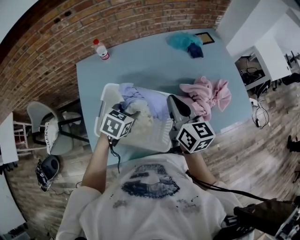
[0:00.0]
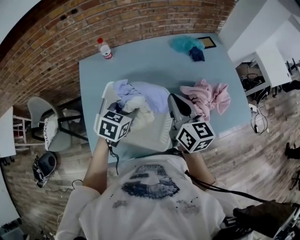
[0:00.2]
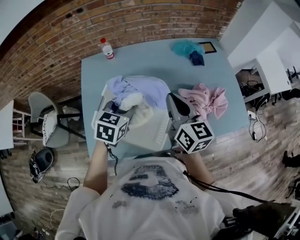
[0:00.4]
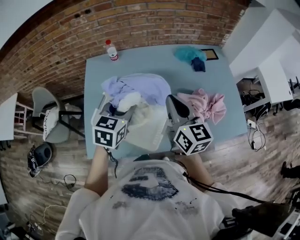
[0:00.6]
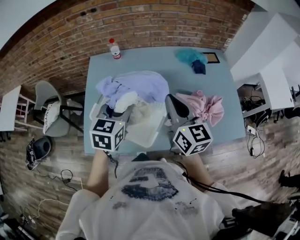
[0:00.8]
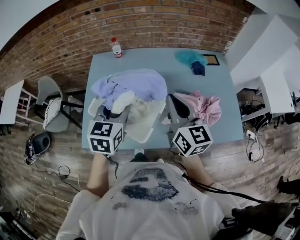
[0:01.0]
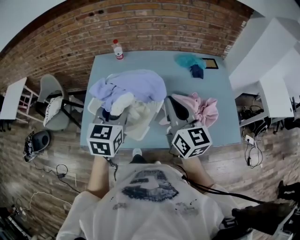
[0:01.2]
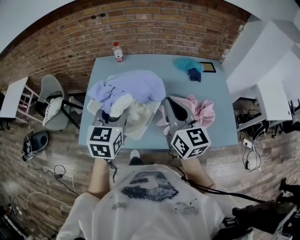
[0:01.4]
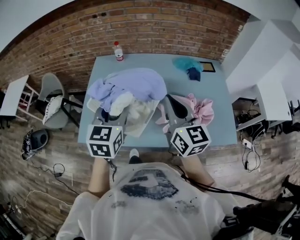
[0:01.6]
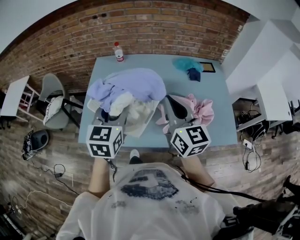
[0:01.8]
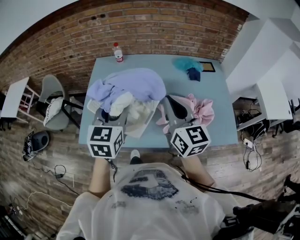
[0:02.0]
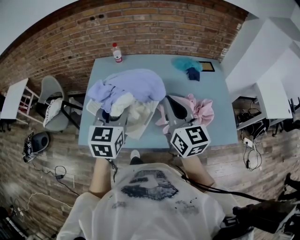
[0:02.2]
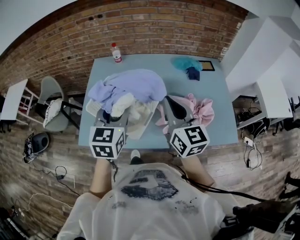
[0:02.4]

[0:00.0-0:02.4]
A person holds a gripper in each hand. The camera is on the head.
0:00.0 to 0:01.2: The left gripper travels upward by roughly 20 cm, and turns by approximately 50 degrees. Meanwhile the right gripper shifts by about 15 cm, and changes its angle by roughly 20 degrees.
0:01.2 to 0:02.4: The grippers move only a little.

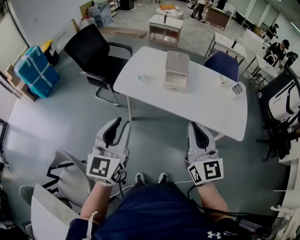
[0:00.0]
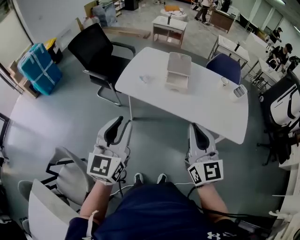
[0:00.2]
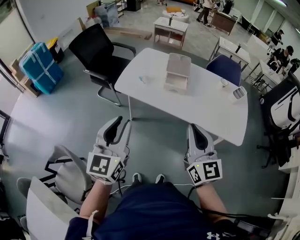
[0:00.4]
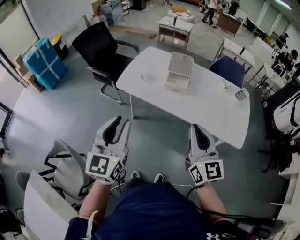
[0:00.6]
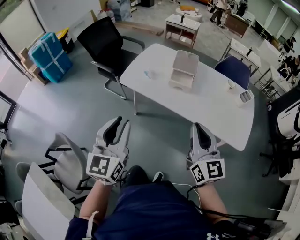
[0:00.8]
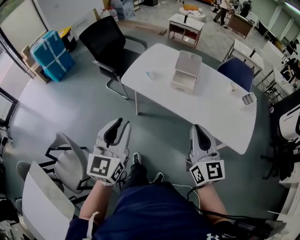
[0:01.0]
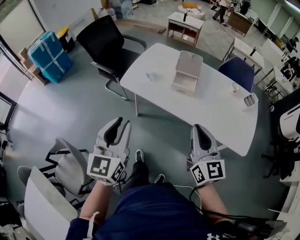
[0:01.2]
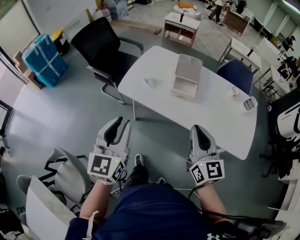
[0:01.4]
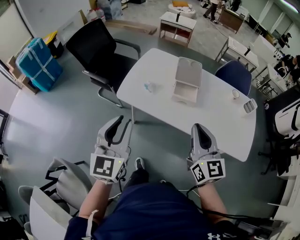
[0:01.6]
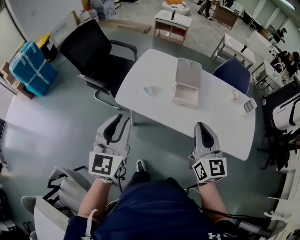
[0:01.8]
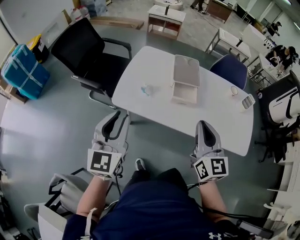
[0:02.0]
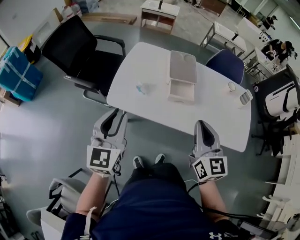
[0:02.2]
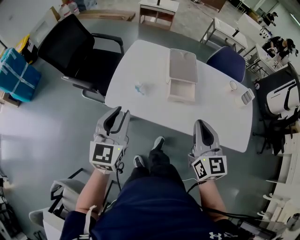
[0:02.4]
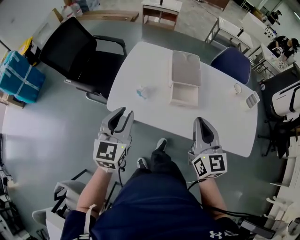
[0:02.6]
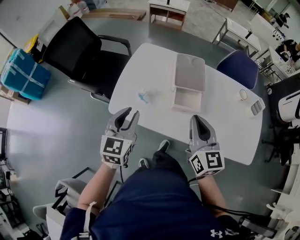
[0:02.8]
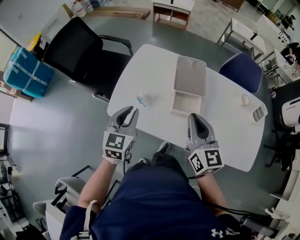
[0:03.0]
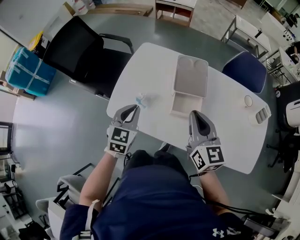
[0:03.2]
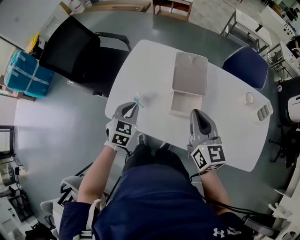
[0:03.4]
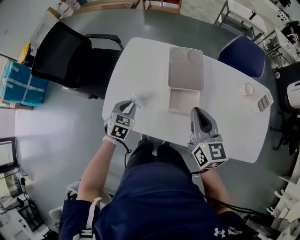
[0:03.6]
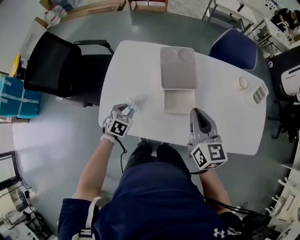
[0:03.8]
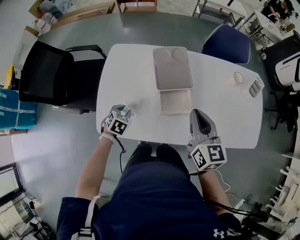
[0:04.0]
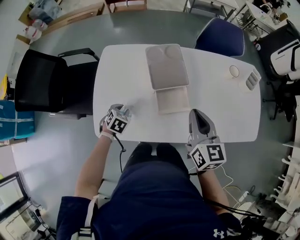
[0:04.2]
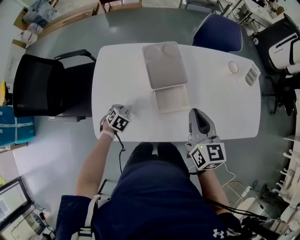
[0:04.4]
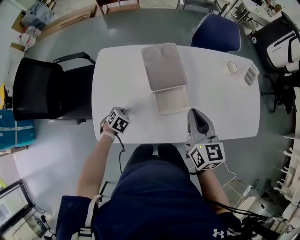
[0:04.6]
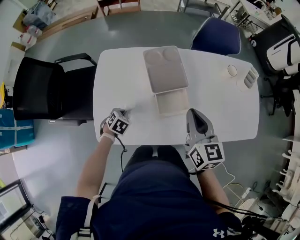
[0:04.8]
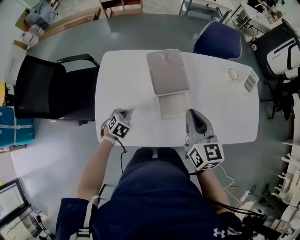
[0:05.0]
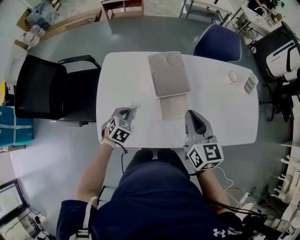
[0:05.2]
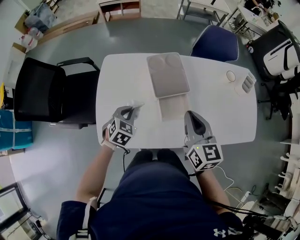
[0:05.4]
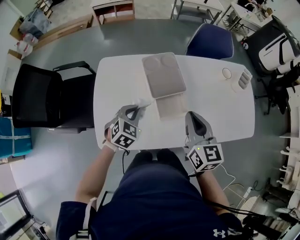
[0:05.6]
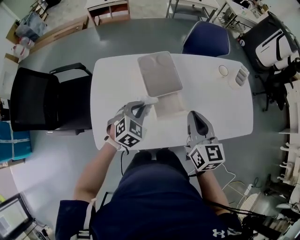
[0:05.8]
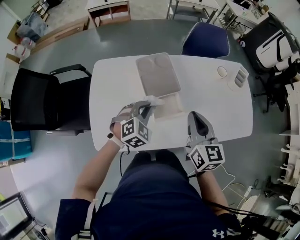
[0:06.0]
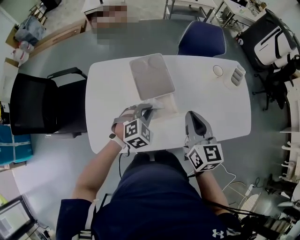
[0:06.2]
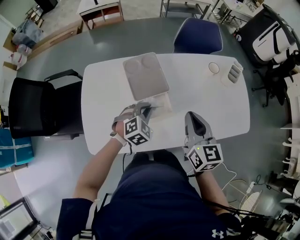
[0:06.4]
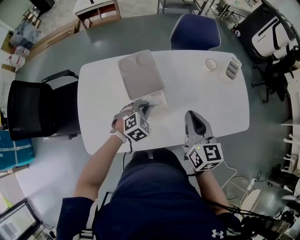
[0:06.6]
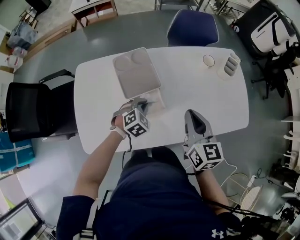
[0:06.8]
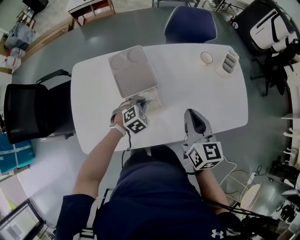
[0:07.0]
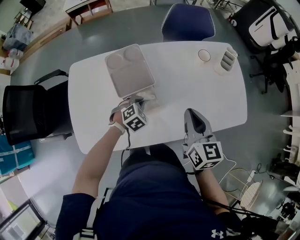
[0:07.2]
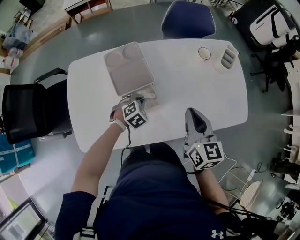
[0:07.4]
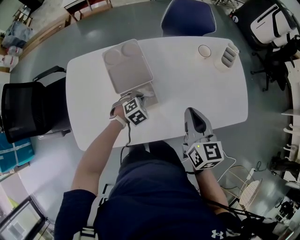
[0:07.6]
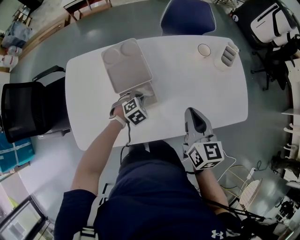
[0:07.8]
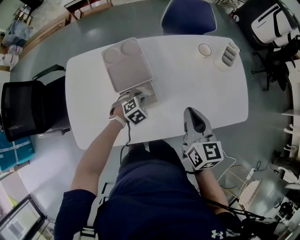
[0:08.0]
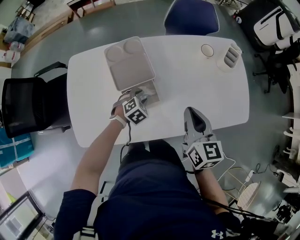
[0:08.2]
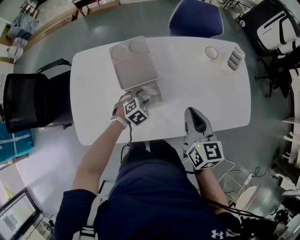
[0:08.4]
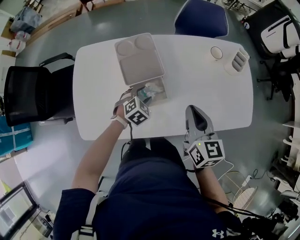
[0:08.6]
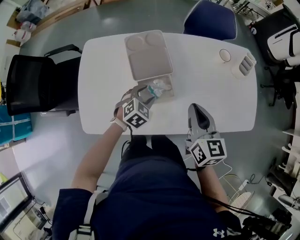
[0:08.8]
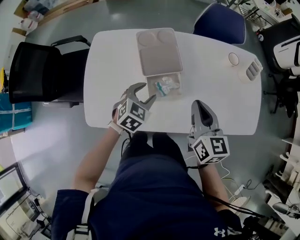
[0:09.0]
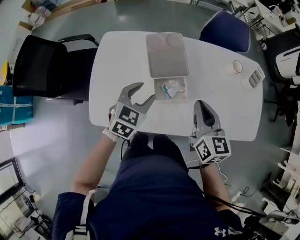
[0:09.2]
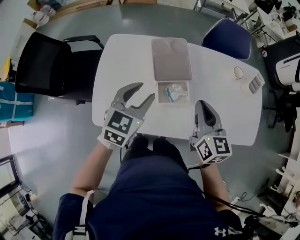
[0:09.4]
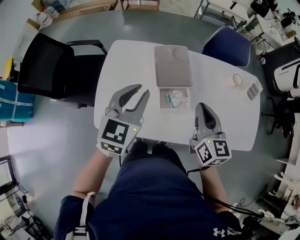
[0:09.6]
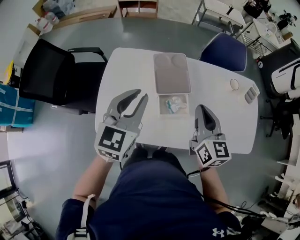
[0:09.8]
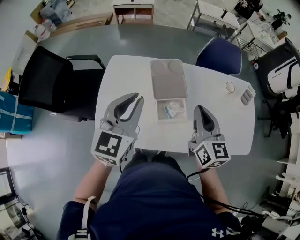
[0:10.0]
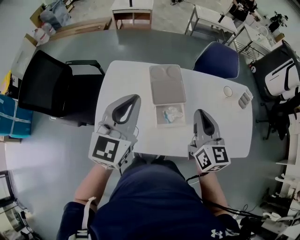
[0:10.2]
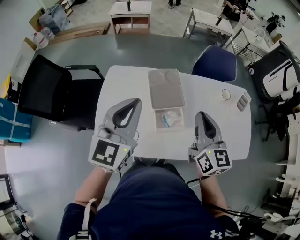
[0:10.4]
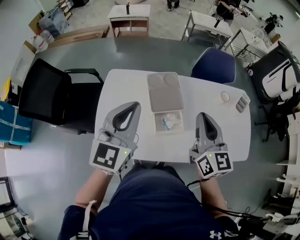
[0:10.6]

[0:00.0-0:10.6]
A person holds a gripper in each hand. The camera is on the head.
0:00.0 to 0:01.6: The grippers both shift forward by some 15 cm.
0:01.6 to 0:03.0: The left gripper is displaced forward and downward by approximately 30 cm. The right gripper moves forward, roughly 20 cm.
0:03.0 to 0:04.6: The right gripper shifts by roughly 10 cm, and swivels roughly 30 degrees; the left gripper is displaced downward by some 30 cm, and tilts its fingers approximately 50 degrees downward.
0:04.6 to 0:06.0: The left gripper shifts approximately 25 cm upward and to the right, and tips its fingers upward by about 30 degrees.
0:06.0 to 0:07.6: The left gripper heads downward and to the right, covering approximately 20 cm, and rotates some 20 degrees; the right gripper heads to the right, covering roughly 10 cm.
0:07.6 to 0:09.0: The right gripper is displaced to the left by roughly 10 cm; the left gripper is displaced upward and to the left by roughly 15 cm, rotates approximately 30 degrees, and opens.
0:09.0 to 0:10.6: The left gripper heads upward, covering some 30 cm, points its fingers roughly 40 degrees further upward, and closes, while the right gripper heads upward, covering some 15 cm.

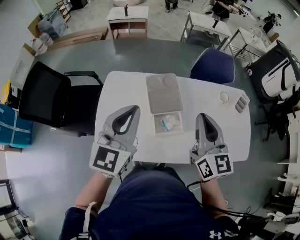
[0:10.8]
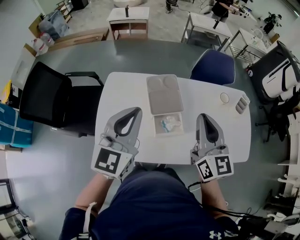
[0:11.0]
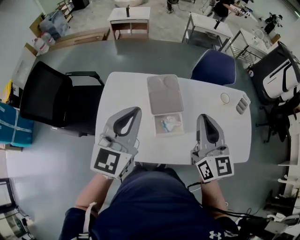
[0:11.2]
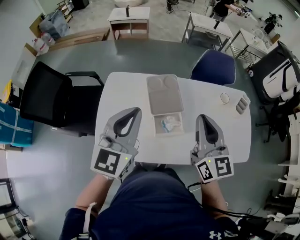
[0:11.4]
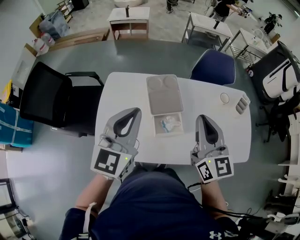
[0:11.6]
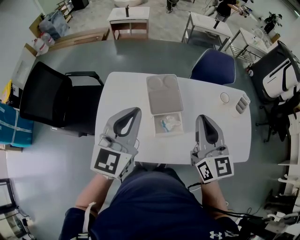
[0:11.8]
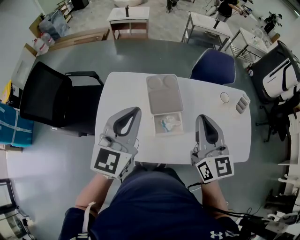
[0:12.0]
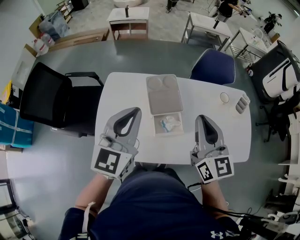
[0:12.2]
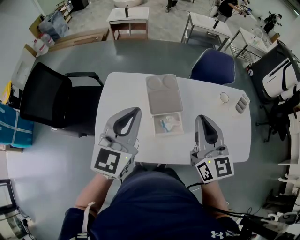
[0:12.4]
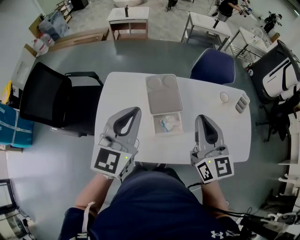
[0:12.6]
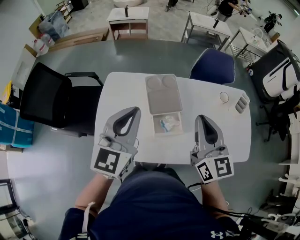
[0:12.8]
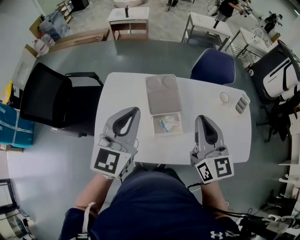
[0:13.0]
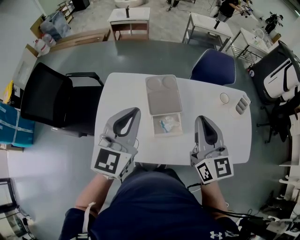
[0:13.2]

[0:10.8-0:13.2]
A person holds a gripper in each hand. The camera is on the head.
0:10.8 to 0:12.0: Both grippers stay put.
0:12.0 to 0:13.2: The two grippers keep their place.

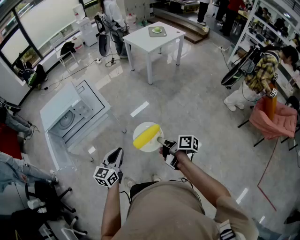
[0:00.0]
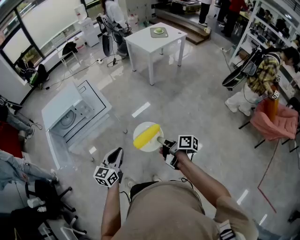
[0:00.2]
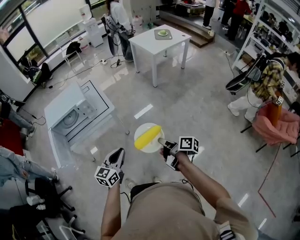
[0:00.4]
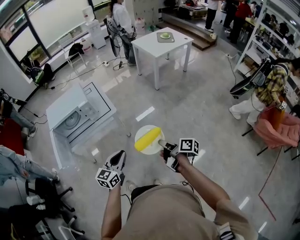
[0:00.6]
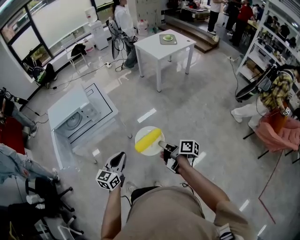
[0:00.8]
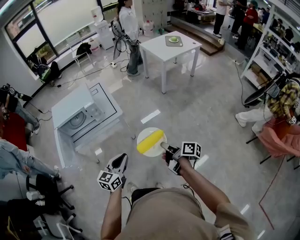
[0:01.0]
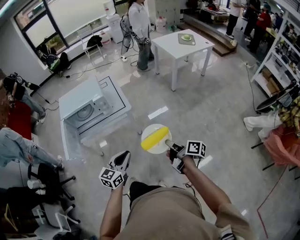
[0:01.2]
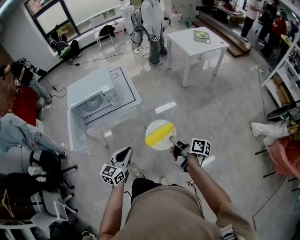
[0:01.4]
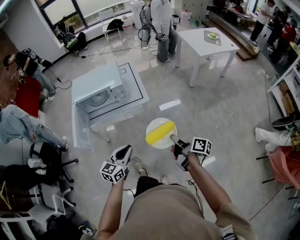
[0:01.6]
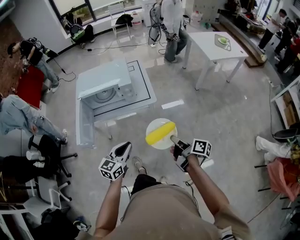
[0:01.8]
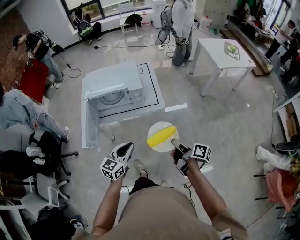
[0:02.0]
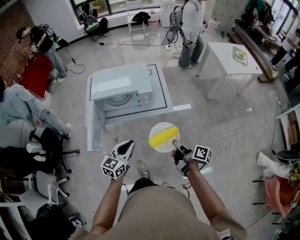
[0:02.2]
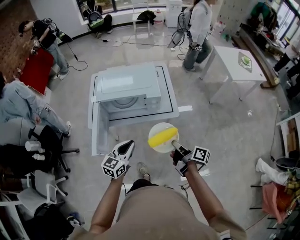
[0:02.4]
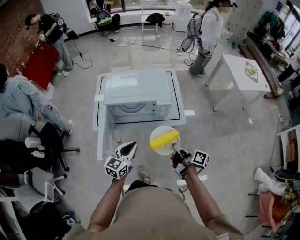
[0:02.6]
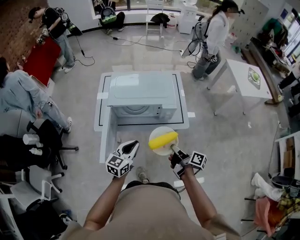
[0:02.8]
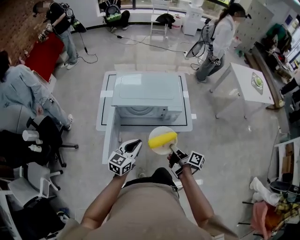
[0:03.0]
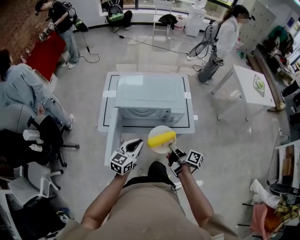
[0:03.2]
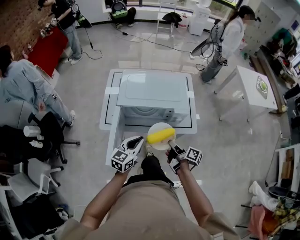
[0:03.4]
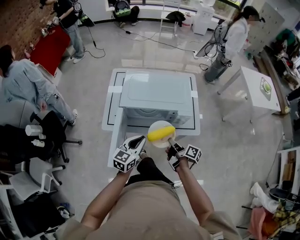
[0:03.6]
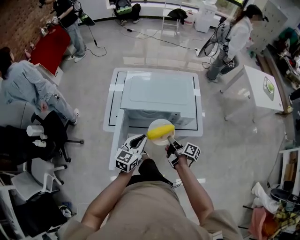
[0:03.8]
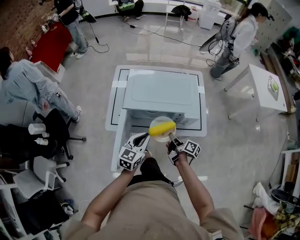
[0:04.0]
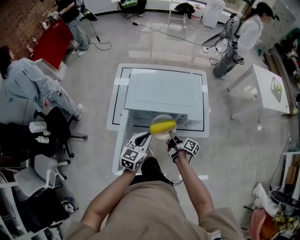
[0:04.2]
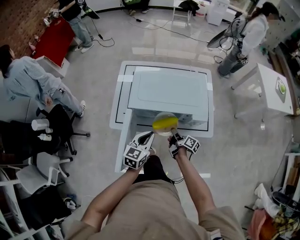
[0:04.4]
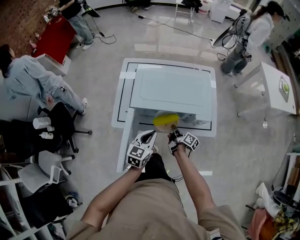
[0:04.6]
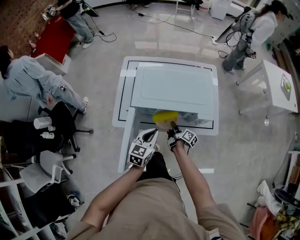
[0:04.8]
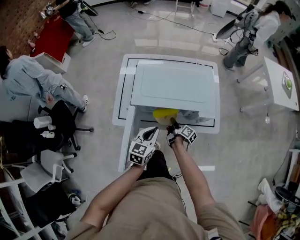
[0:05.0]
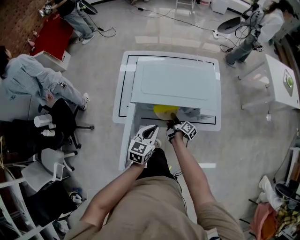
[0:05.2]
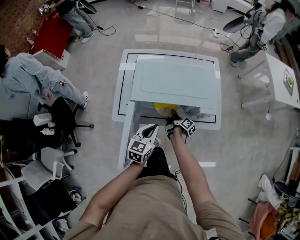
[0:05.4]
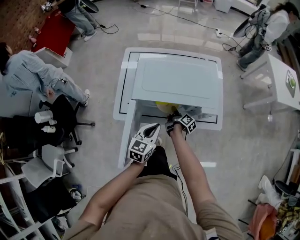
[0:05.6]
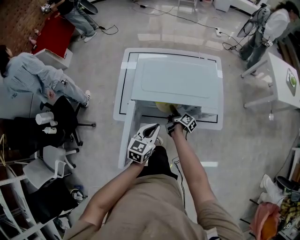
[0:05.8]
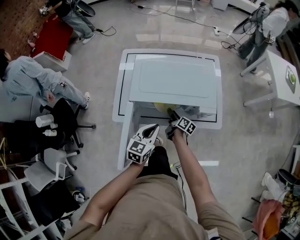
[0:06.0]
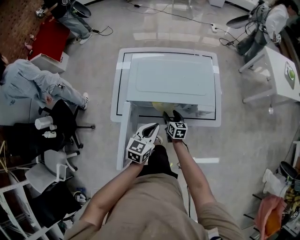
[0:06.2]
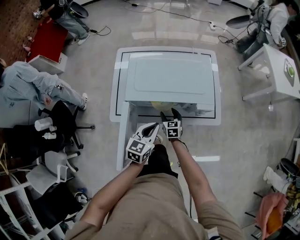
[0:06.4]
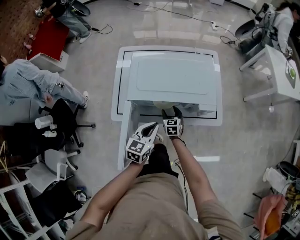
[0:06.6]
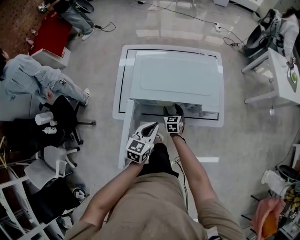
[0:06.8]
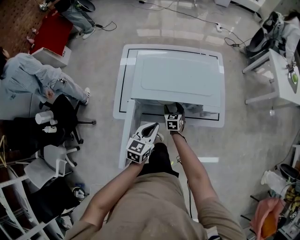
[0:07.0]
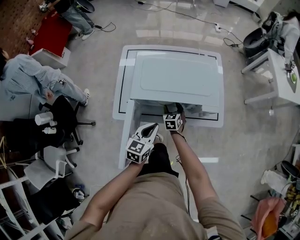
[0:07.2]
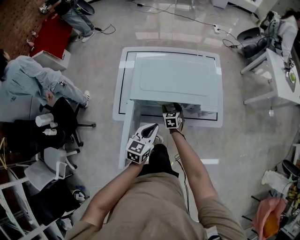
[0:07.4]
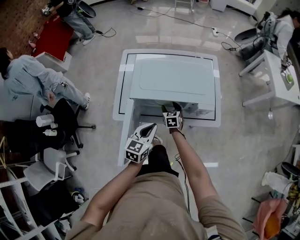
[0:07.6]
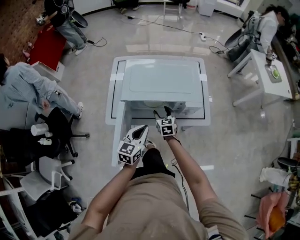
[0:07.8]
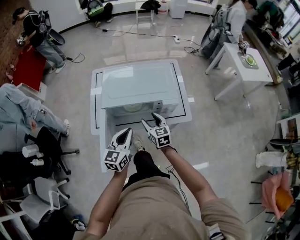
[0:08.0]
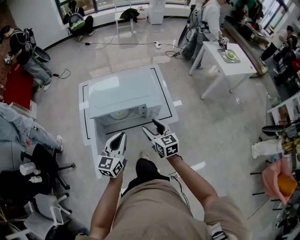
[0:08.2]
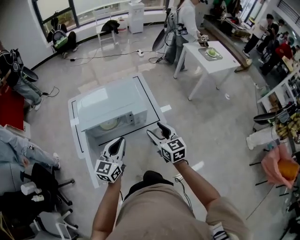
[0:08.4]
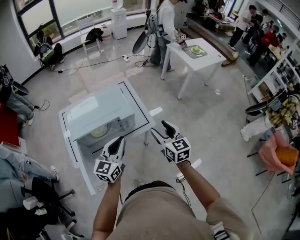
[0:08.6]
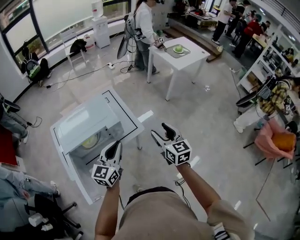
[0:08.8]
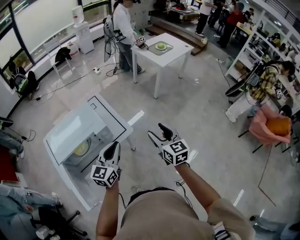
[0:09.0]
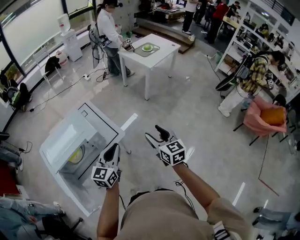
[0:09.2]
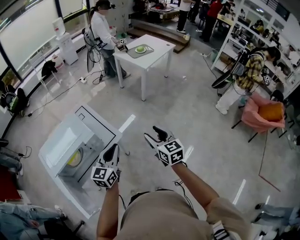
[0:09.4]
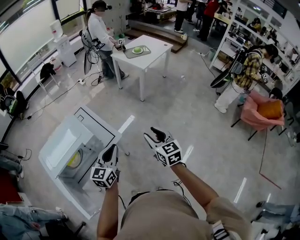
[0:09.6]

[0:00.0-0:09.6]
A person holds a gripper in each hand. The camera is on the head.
0:00.0 to 0:01.6: The right gripper moves to the left and forward, approximately 15 cm, while the left gripper travels to the left by roughly 10 cm.
0:01.6 to 0:03.2: The right gripper shifts some 40 cm to the left and forward, while the left gripper heads forward and to the left, covering approximately 35 cm.
0:03.2 to 0:04.8: The left gripper goes some 15 cm forward and downward; the right gripper shifts roughly 30 cm downward, forward and to the left.
0:04.8 to 0:06.4: The right gripper rolls counterclockwise, seen from behind, by about 70 degrees, and opens its fingers.
0:06.4 to 0:08.0: The left gripper goes approximately 10 cm upward. Meanwhile the right gripper is displaced upward by approximately 20 cm.
0:08.0 to 0:09.6: The left gripper moves some 35 cm, and rotates some 40 degrees. The right gripper moves approximately 50 cm, and swivels approximately 40 degrees.
